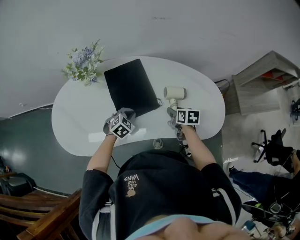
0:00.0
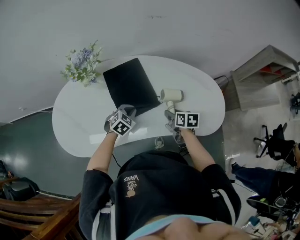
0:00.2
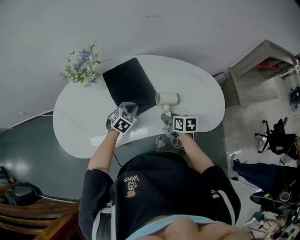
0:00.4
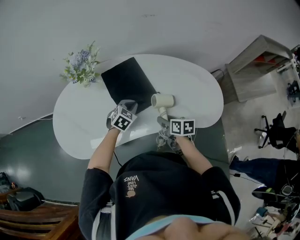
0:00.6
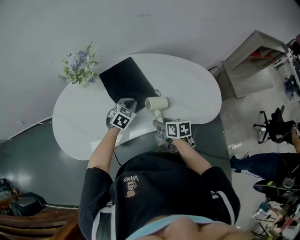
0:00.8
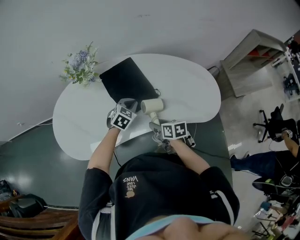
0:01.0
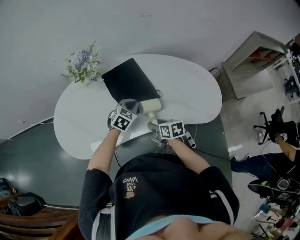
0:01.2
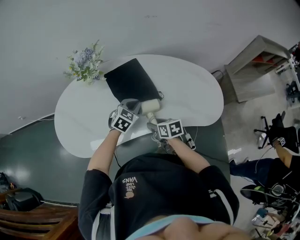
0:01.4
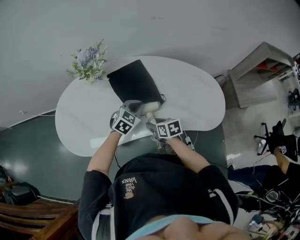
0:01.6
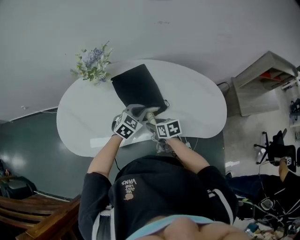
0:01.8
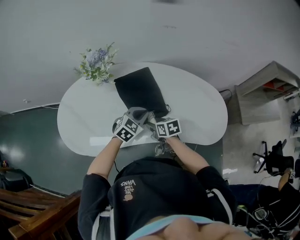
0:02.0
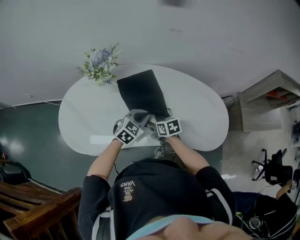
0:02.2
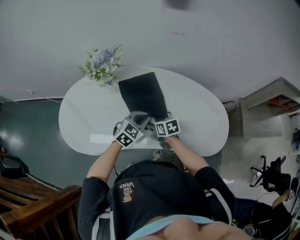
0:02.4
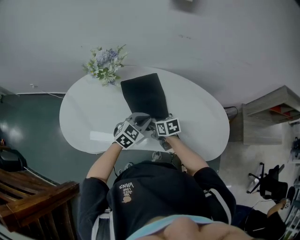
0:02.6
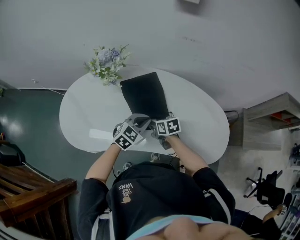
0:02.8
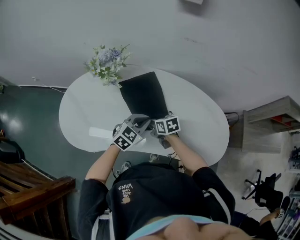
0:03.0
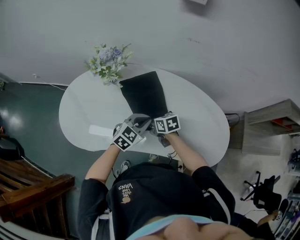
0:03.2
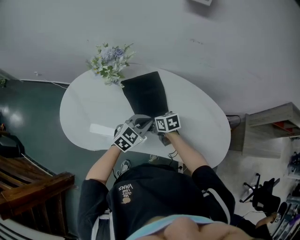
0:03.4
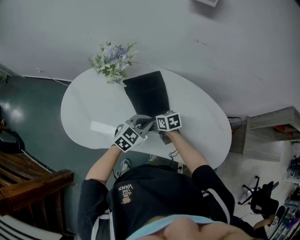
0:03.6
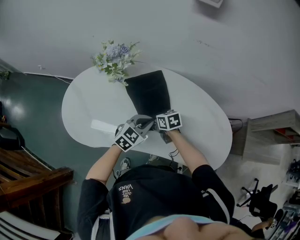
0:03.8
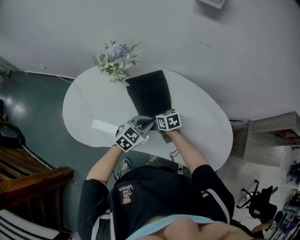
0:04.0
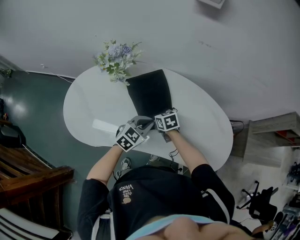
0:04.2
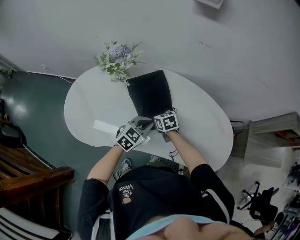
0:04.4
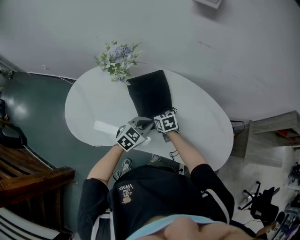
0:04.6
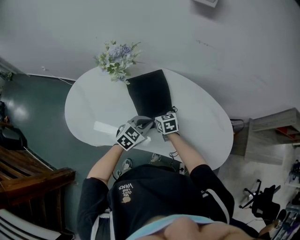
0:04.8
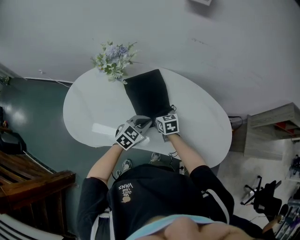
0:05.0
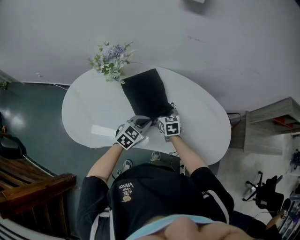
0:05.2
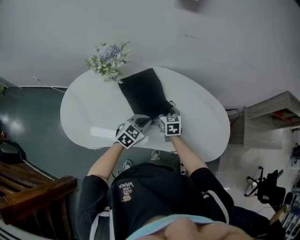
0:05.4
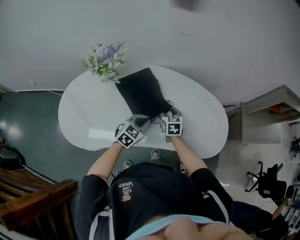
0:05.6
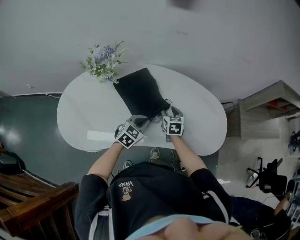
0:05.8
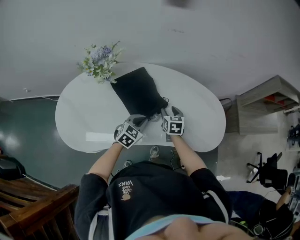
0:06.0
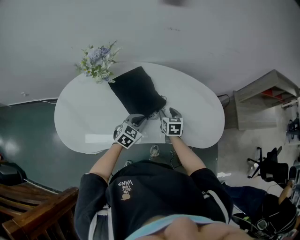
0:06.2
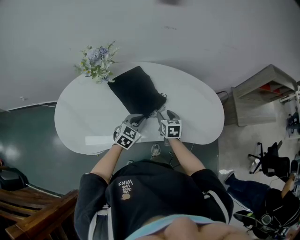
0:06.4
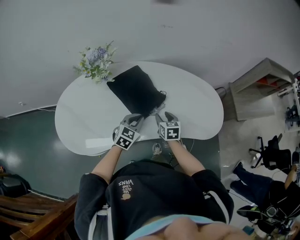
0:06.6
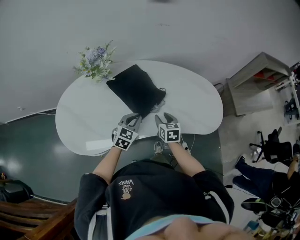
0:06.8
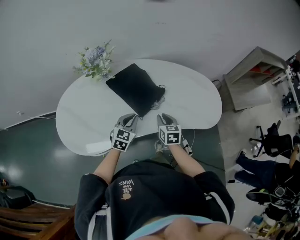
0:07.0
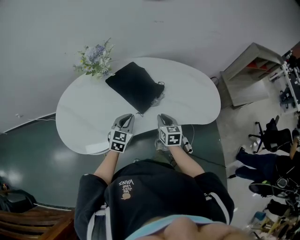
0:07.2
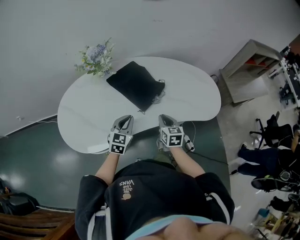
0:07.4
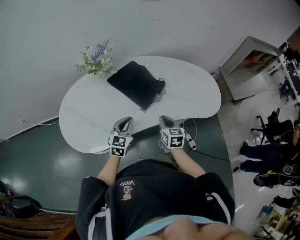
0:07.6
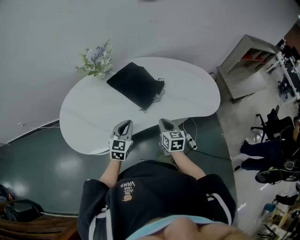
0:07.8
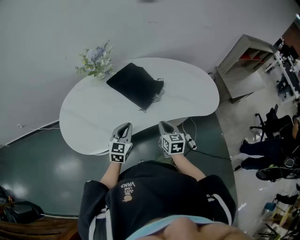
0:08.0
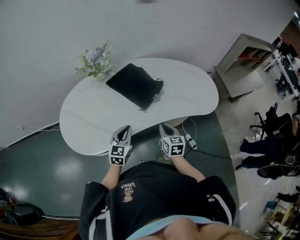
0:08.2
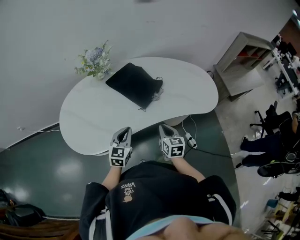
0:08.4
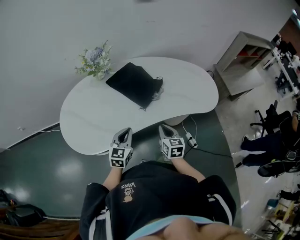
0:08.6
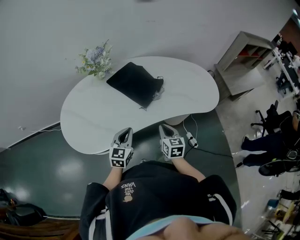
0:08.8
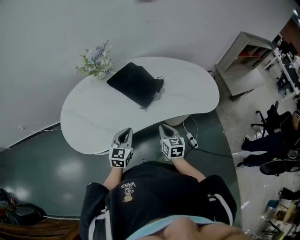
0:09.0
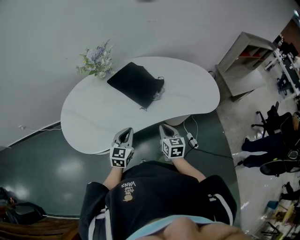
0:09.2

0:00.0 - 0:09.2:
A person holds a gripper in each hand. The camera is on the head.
0:00.0 - 0:01.6: The right gripper shifts approximately 20 cm to the left and backward; the left gripper goes some 10 cm upward.
0:01.6 - 0:03.0: The right gripper goes about 15 cm forward.
0:03.0 - 0:04.6: The right gripper changes place by approximately 5 cm.
0:04.6 - 0:06.2: The right gripper shifts some 15 cm to the right, and turns by roughly 40 degrees.
0:06.2 - 0:07.6: The left gripper shifts approximately 15 cm backward and to the left. The right gripper heads backward, covering approximately 20 cm, and closes.
0:07.6 - 0:09.2: The two grippers go approximately 5 cm backward.

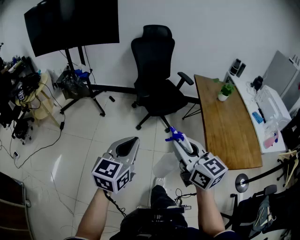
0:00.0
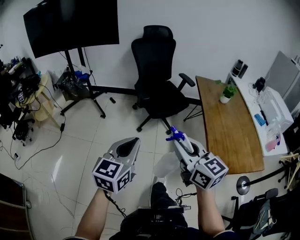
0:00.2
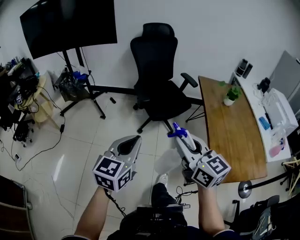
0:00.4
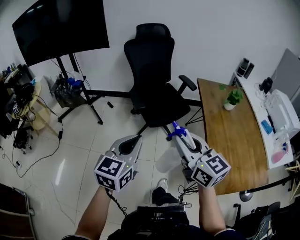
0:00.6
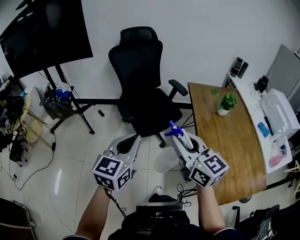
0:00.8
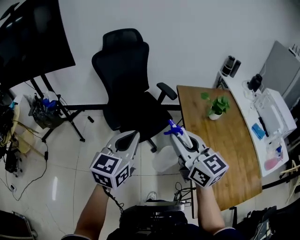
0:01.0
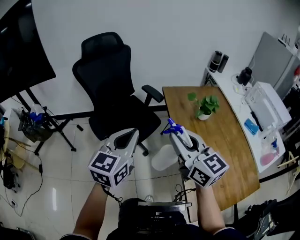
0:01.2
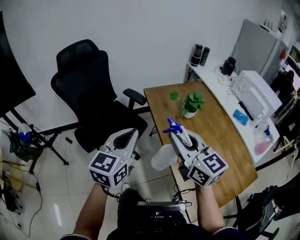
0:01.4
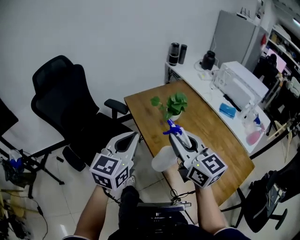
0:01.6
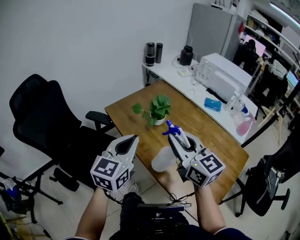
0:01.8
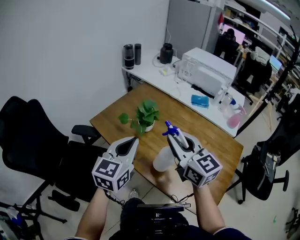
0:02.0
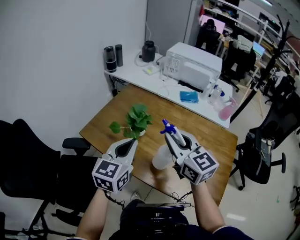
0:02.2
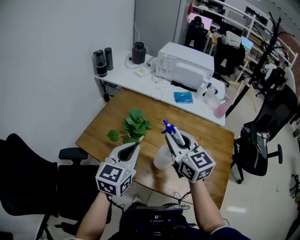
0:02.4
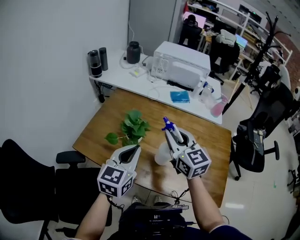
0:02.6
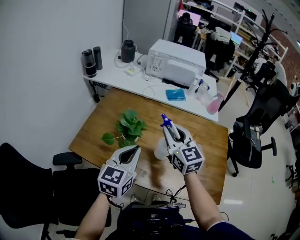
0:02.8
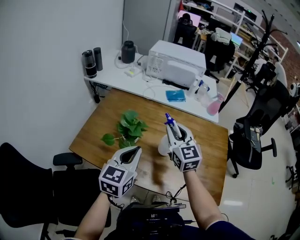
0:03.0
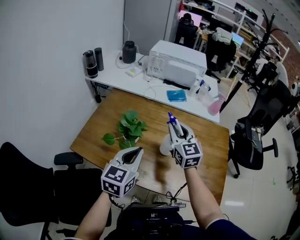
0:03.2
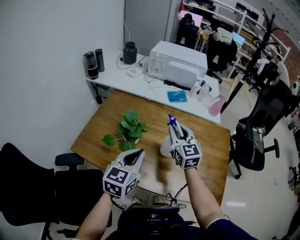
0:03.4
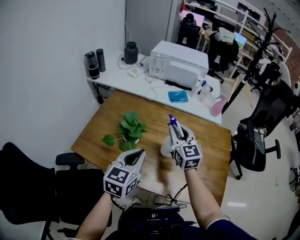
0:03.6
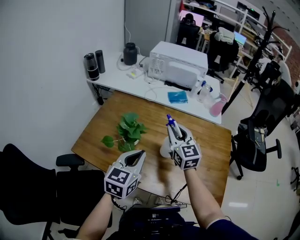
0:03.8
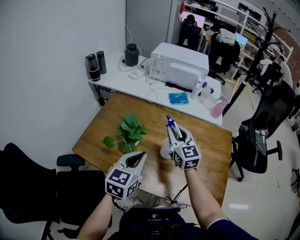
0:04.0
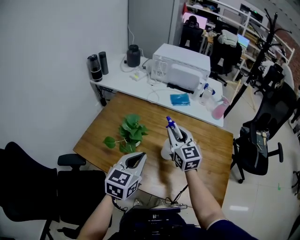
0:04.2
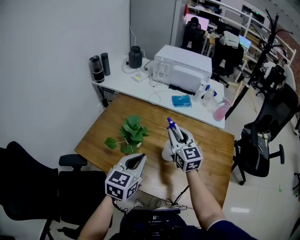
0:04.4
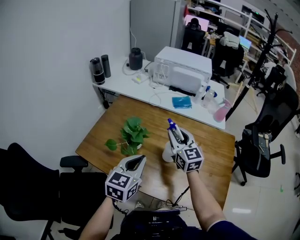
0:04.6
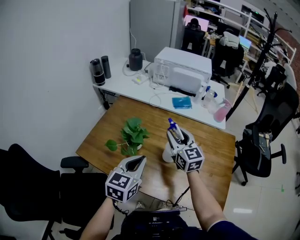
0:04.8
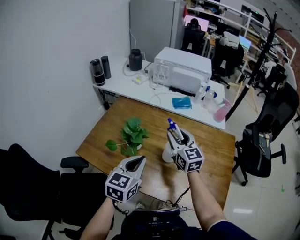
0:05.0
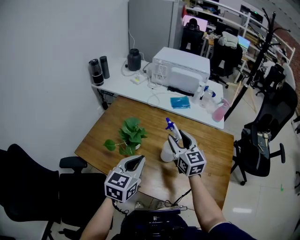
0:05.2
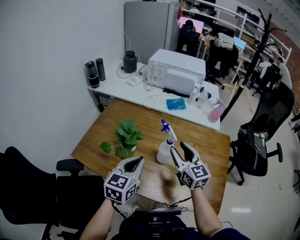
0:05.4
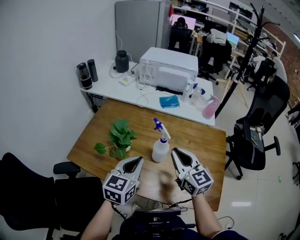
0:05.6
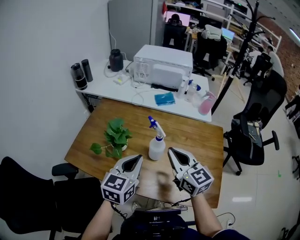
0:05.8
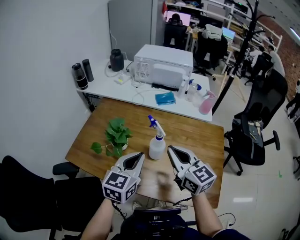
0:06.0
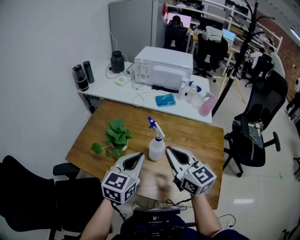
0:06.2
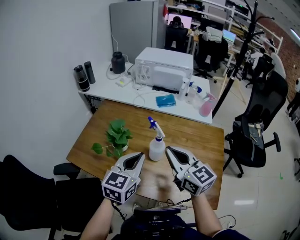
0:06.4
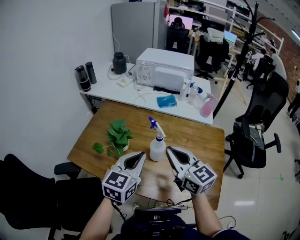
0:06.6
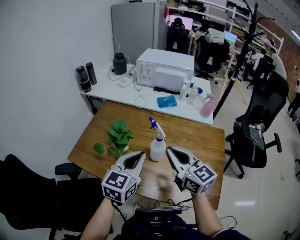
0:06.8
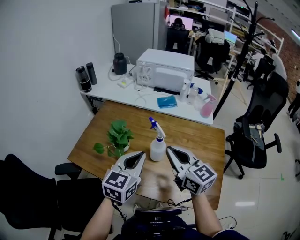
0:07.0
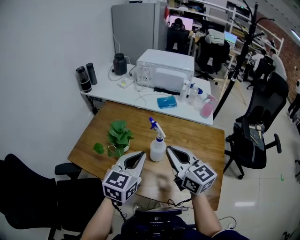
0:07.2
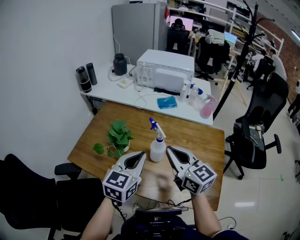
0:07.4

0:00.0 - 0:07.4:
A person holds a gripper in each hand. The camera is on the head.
0:00.0 - 0:01.4: The two grippers travel together, forward and to the right, roughly 50 cm. The right gripper turns by about 20 degrees. The left gripper swivels approximately 20 degrees.
0:01.4 - 0:03.0: The right gripper ends up approximately 30 cm from where it was, and turns by some 70 degrees; the left gripper shifts by roughly 30 cm, and changes its angle by some 60 degrees.
0:03.0 - 0:04.4: The grippers move only a little.
0:04.4 - 0:06.0: The left gripper goes about 5 cm to the right; the right gripper moves backward, approximately 10 cm, and closes.
0:06.0 - 0:07.4: The grippers move only a little.

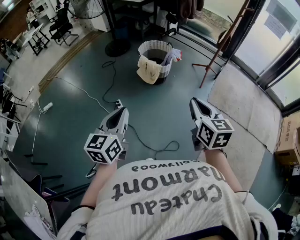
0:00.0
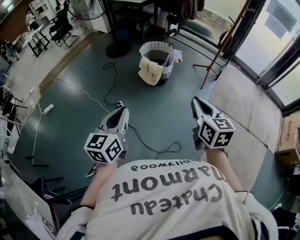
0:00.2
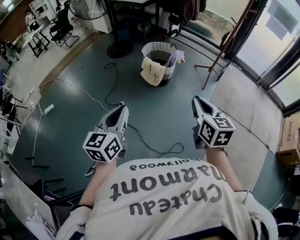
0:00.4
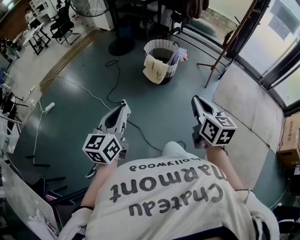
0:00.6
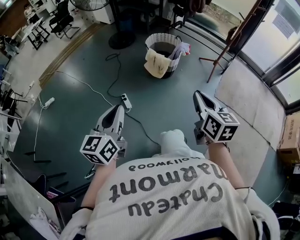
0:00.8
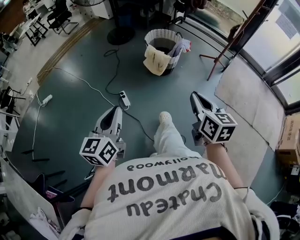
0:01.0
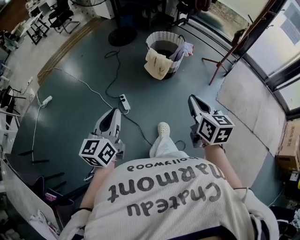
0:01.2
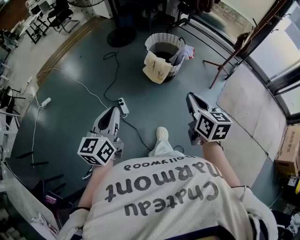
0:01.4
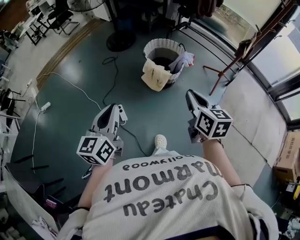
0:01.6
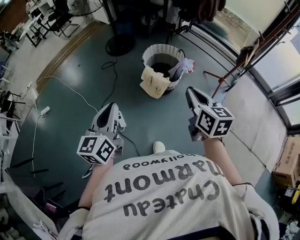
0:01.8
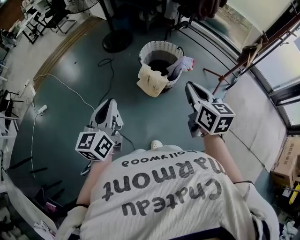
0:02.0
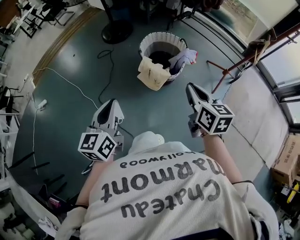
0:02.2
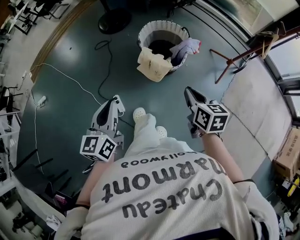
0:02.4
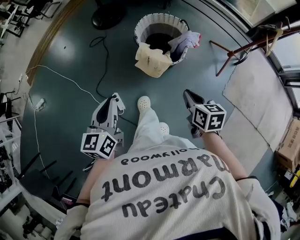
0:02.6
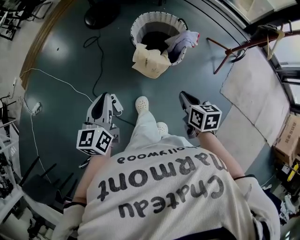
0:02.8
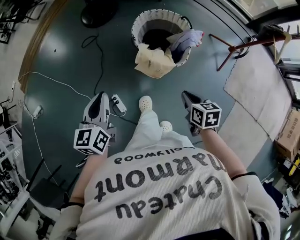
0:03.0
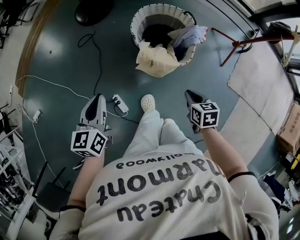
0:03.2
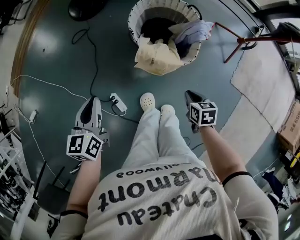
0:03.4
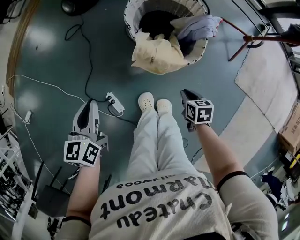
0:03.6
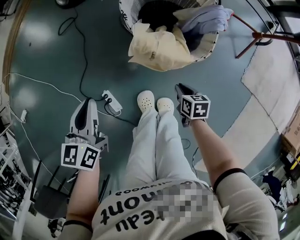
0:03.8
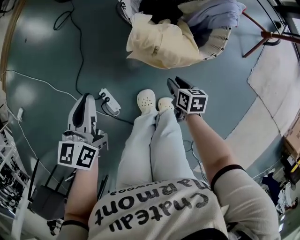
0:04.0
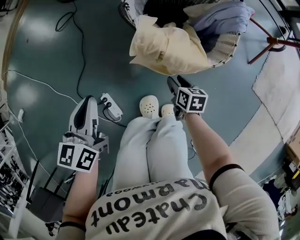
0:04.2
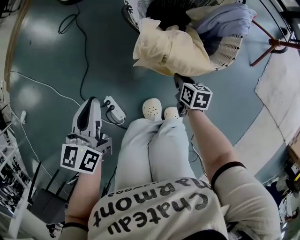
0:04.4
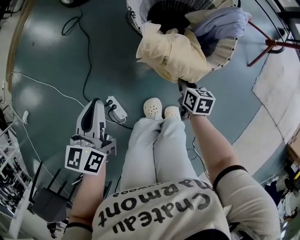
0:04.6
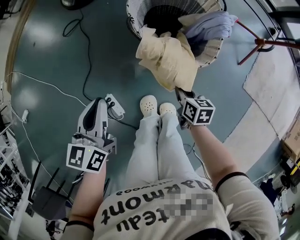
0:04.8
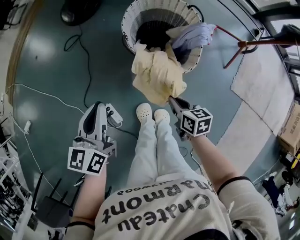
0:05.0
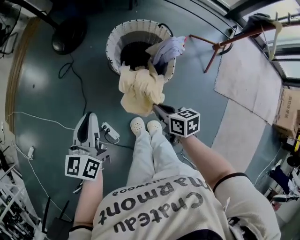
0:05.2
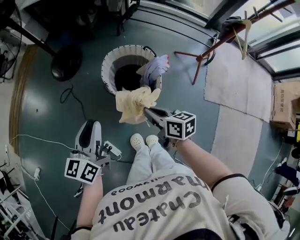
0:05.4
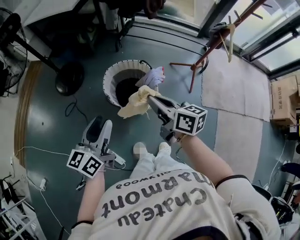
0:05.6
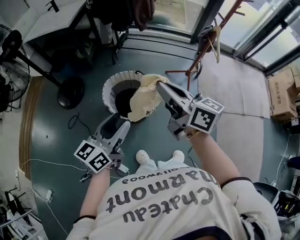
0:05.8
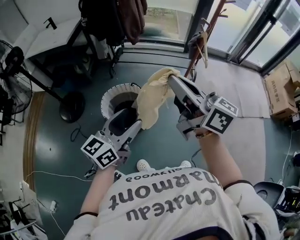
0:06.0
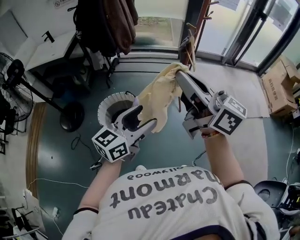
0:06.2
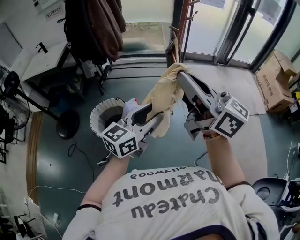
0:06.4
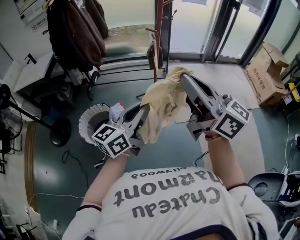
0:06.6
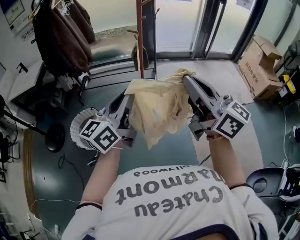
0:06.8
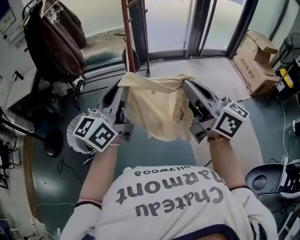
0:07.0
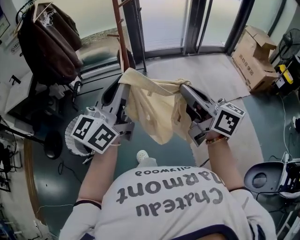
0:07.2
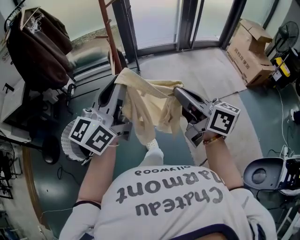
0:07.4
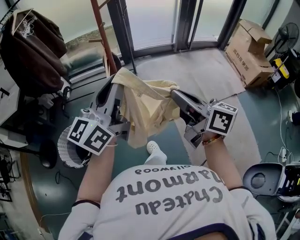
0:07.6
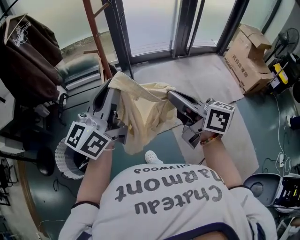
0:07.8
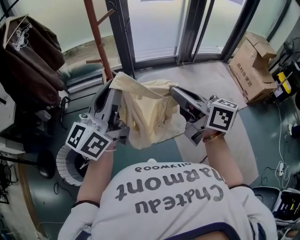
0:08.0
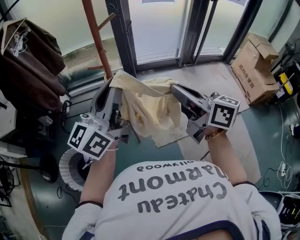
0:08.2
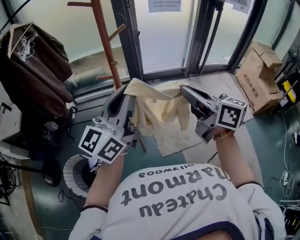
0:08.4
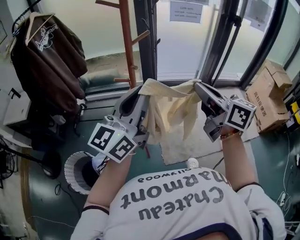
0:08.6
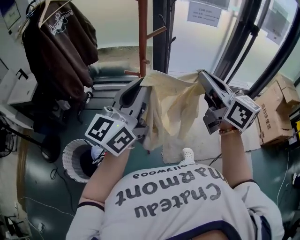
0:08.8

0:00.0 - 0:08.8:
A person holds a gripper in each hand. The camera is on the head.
0:00.0 - 0:01.4: The right gripper goes approximately 20 cm forward, while the left gripper goes some 20 cm forward and to the left.
0:01.4 - 0:03.0: The right gripper goes some 40 cm forward and downward, and changes its angle by roughly 30 degrees. The left gripper travels forward by about 40 cm.
0:03.0 - 0:04.4: The grippers both shift downward by roughly 40 cm. The right gripper opens its fingers.
0:04.4 - 0:05.8: The left gripper is displaced upward by roughly 40 cm, changes its angle by some 50 degrees, and opens its fingers, while the right gripper heads upward, covering roughly 80 cm, tips its fingers upward by some 50 degrees, and closes its fingers.
0:05.8 - 0:07.4: The two grippers travel together, to the right, roughly 60 cm. The right gripper rotates approximately 20 degrees, while the left gripper changes its angle by roughly 30 degrees, and closes up.
0:07.4 - 0:08.8: The grippers both shift forward by approximately 30 cm. The right gripper changes its angle by some 20 degrees.
